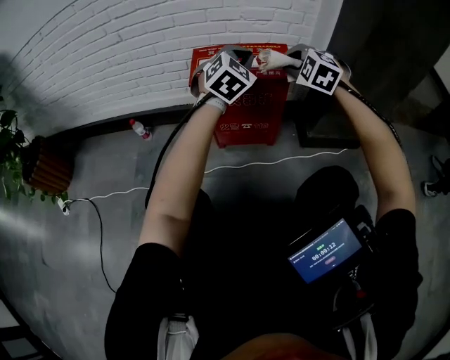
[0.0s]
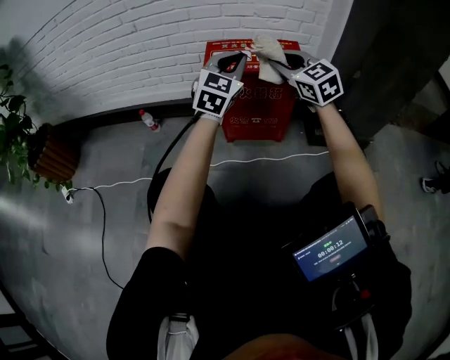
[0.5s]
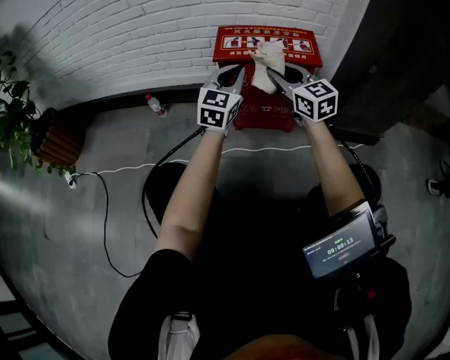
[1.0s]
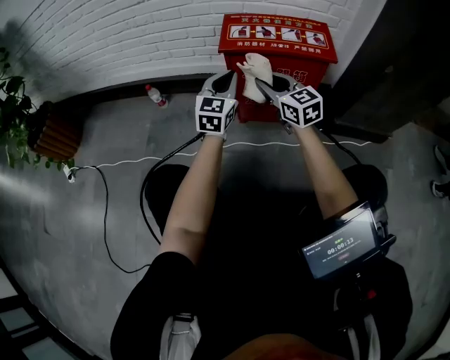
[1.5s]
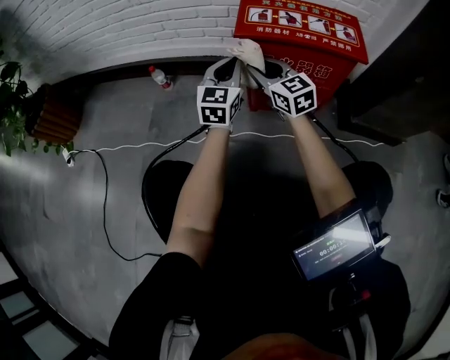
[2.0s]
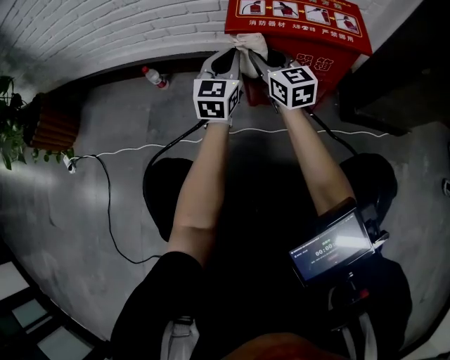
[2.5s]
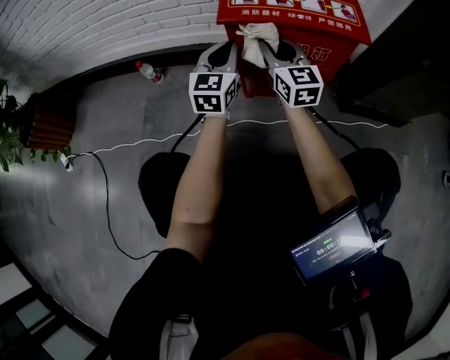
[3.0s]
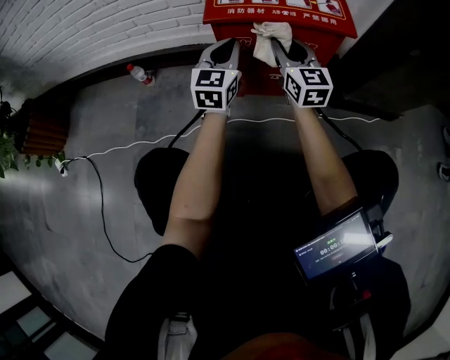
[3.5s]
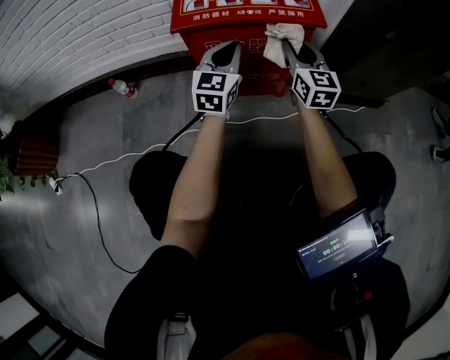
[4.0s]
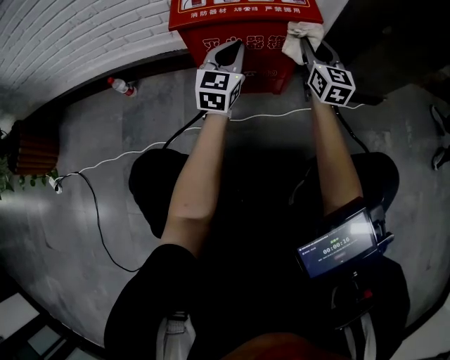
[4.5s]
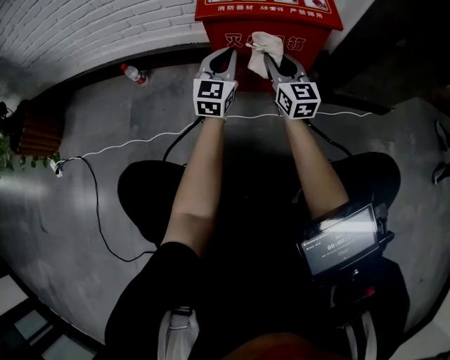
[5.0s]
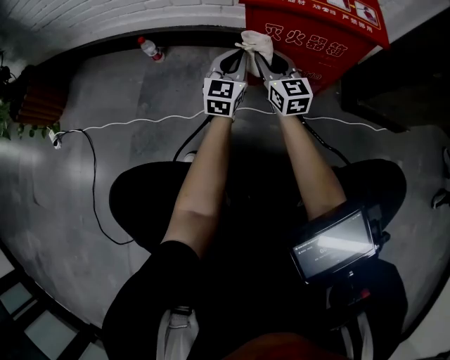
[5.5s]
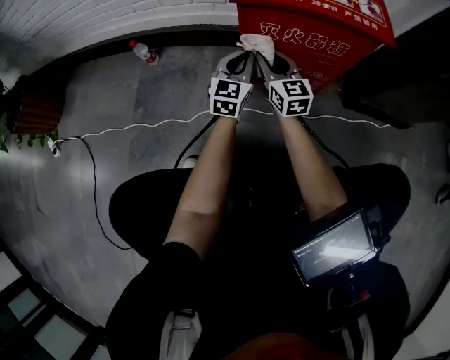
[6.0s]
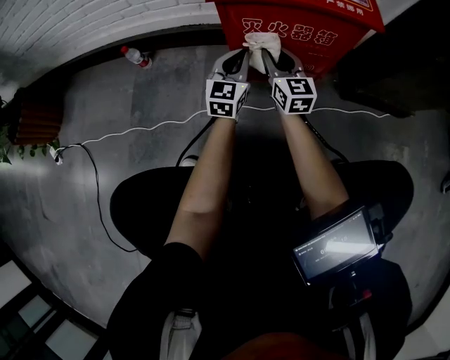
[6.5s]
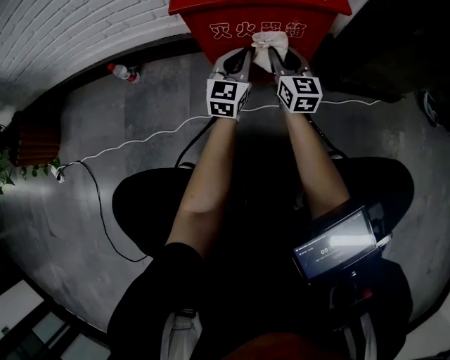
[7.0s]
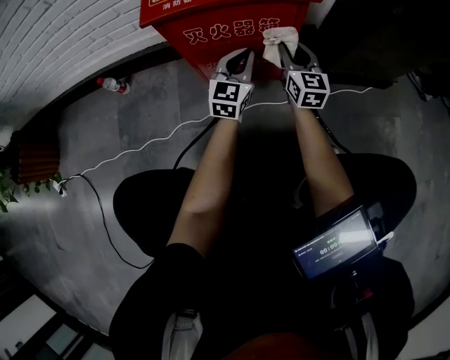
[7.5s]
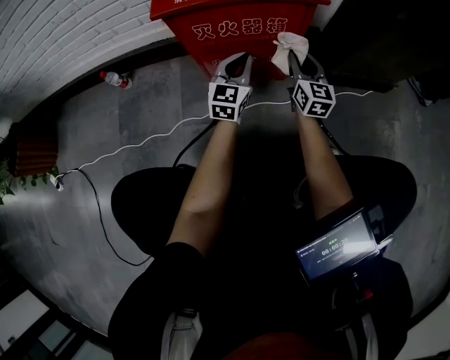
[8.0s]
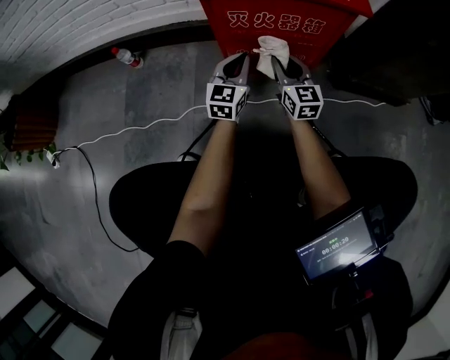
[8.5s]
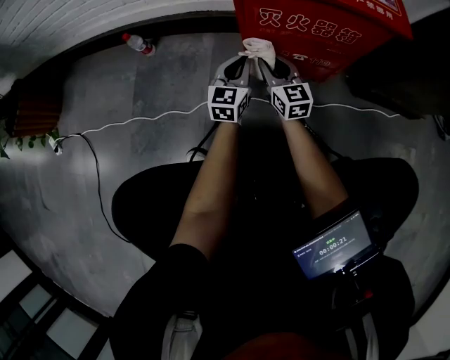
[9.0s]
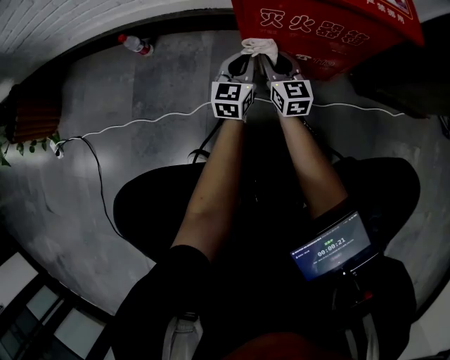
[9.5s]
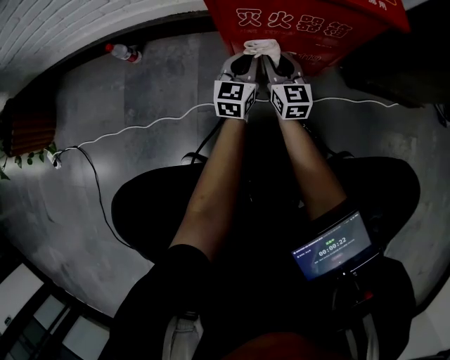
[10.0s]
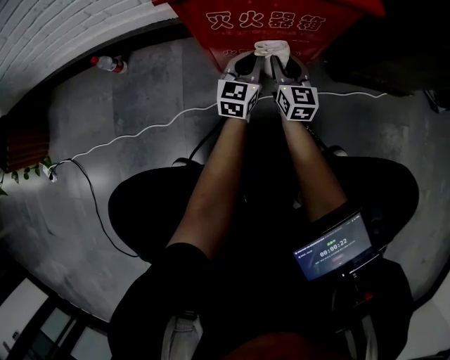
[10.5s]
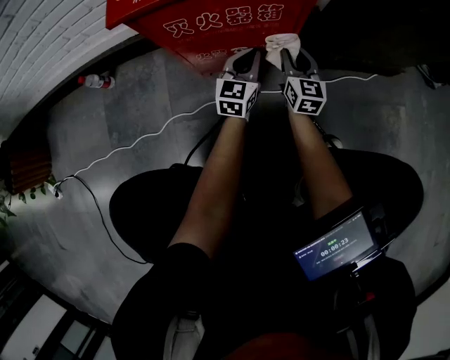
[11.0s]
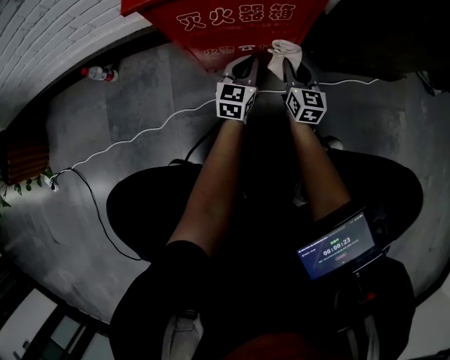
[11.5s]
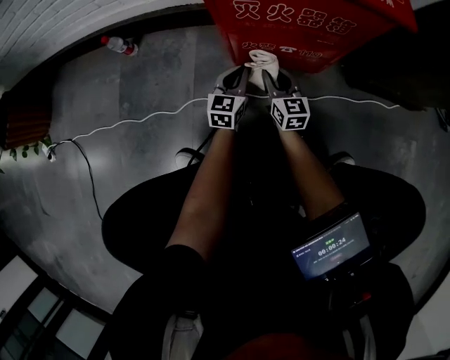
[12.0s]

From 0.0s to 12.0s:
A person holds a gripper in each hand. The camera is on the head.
From 0.0s to 2.0s: Both grippers move to the left and downward, approximately 30 cm. The left gripper rotates about 40 degrees. The right gripper changes its angle by roughly 60 degrees.
From 2.0s to 4.0s: The left gripper is displaced to the right by some 15 cm. The right gripper goes about 25 cm to the right, and changes its angle by about 40 degrees.
From 4.0s to 6.0s: The left gripper moves downward and to the left, roughly 15 cm; the right gripper travels to the left and downward by about 25 cm.
From 6.0s to 8.0s: The right gripper moves to the right, roughly 25 cm, and rotates about 20 degrees. Meanwhile the left gripper is displaced to the right by about 15 cm.
From 8.0s to 10.0s: The left gripper shifts approximately 15 cm to the left and downward, while the right gripper is displaced to the left and downward by approximately 20 cm.
From 10.0s to 12.0s: The two grippers go about 10 cm downward. The right gripper reaches some 20 cm to the right, then returns, while the left gripper moves roughly 15 cm to the right and comes back.

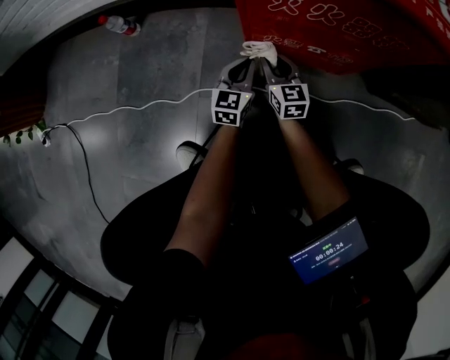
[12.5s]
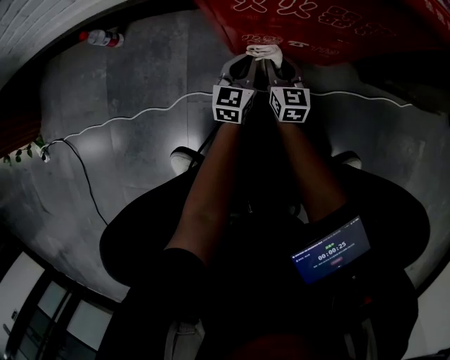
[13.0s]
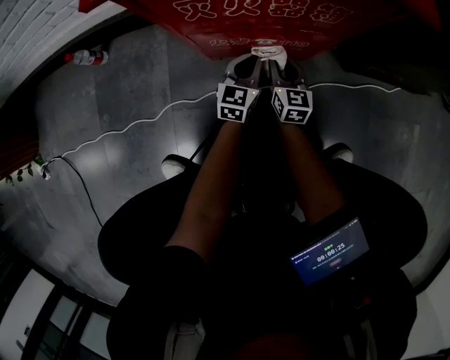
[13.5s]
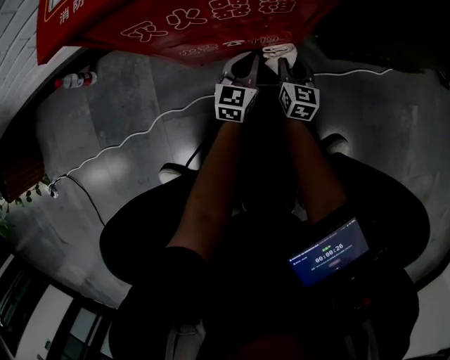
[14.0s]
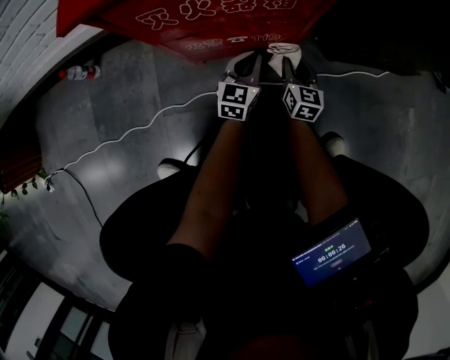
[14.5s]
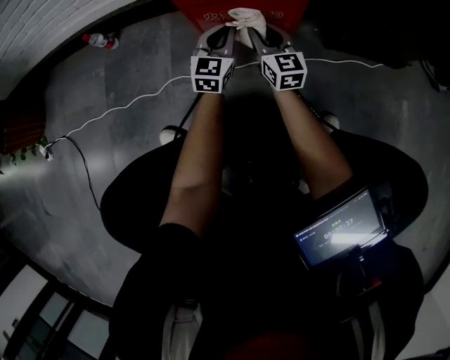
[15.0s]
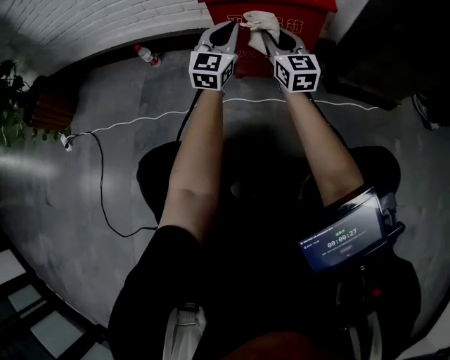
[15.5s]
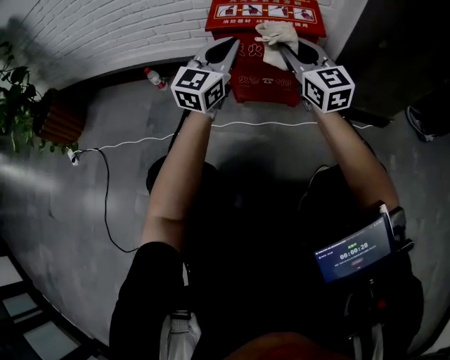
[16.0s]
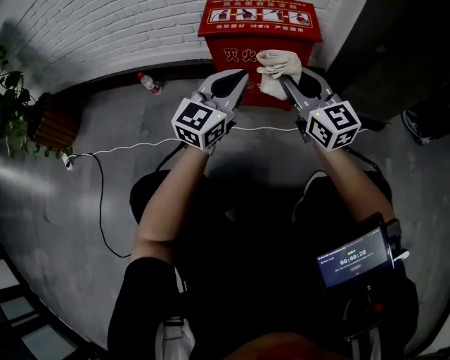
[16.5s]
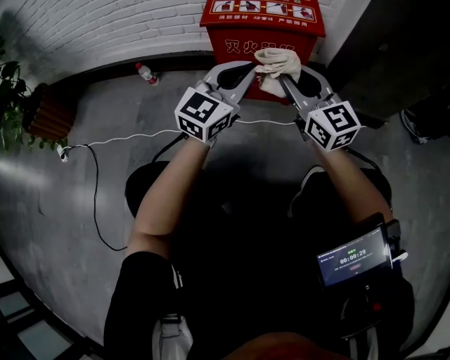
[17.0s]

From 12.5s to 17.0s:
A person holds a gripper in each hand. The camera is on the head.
From 12.5s to 14.5s: The grippers both shift to the right by about 25 cm. The right gripper rotates approximately 30 degrees.
From 14.5s to 17.0s: The left gripper shifts approximately 50 cm upward and backward, and swivels approximately 20 degrees, while the right gripper goes about 50 cm upward, and changes its angle by some 50 degrees.

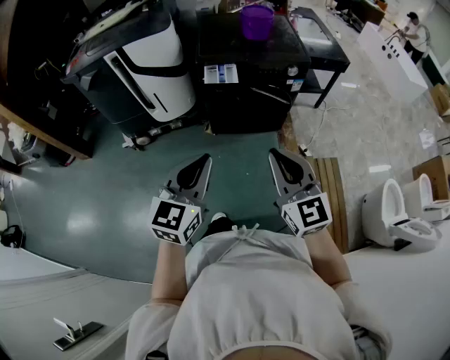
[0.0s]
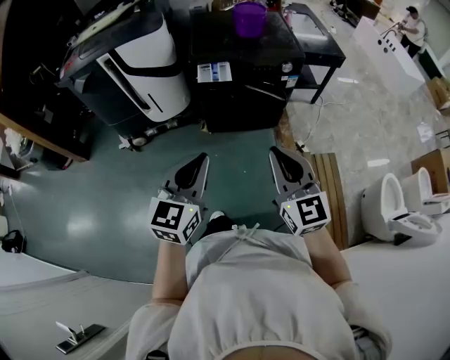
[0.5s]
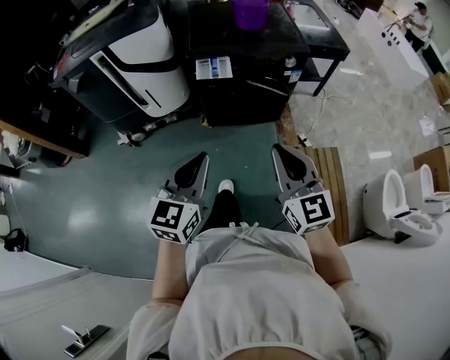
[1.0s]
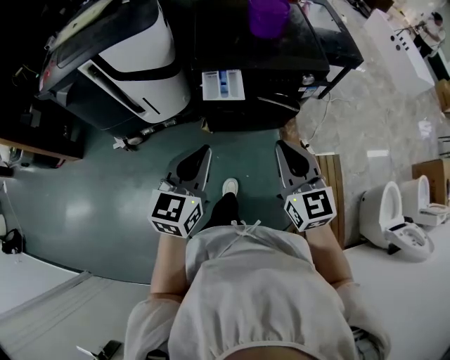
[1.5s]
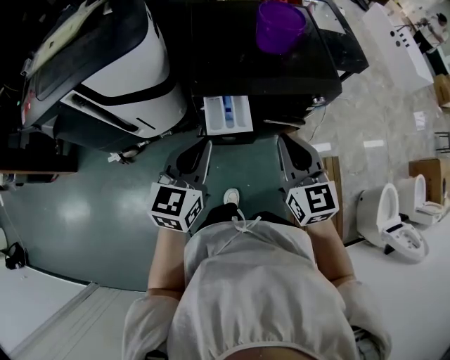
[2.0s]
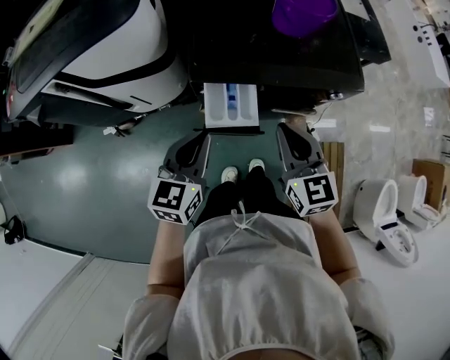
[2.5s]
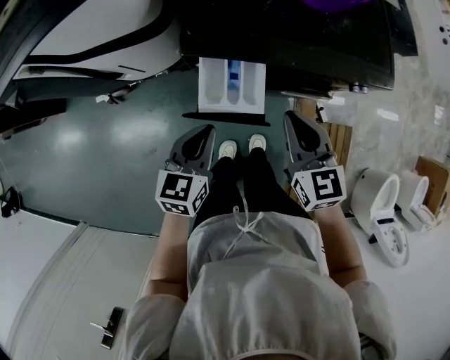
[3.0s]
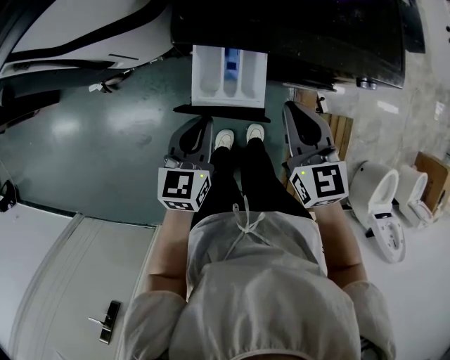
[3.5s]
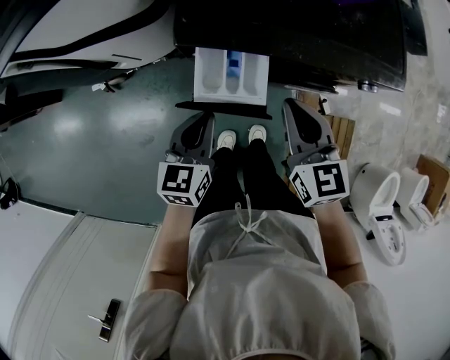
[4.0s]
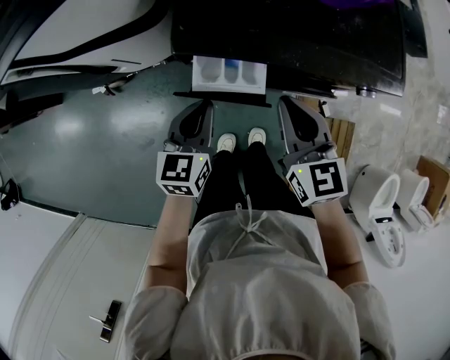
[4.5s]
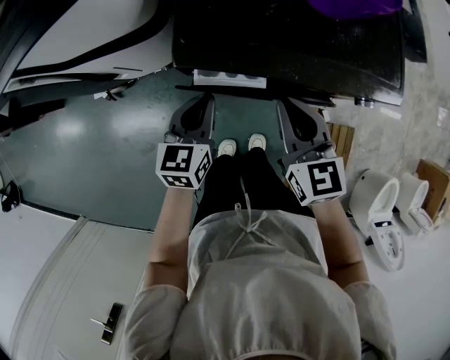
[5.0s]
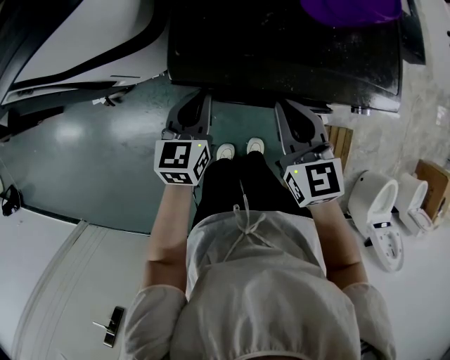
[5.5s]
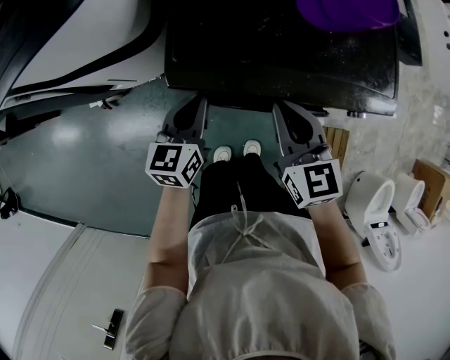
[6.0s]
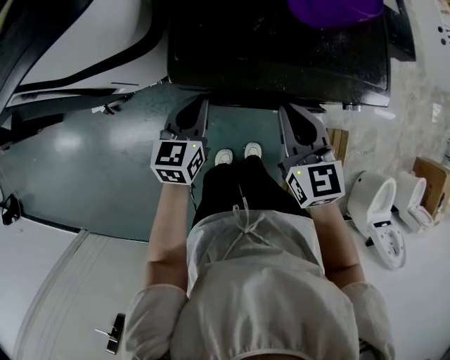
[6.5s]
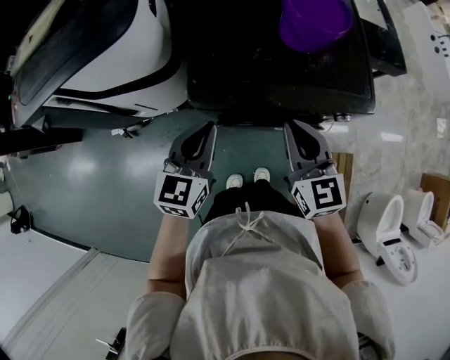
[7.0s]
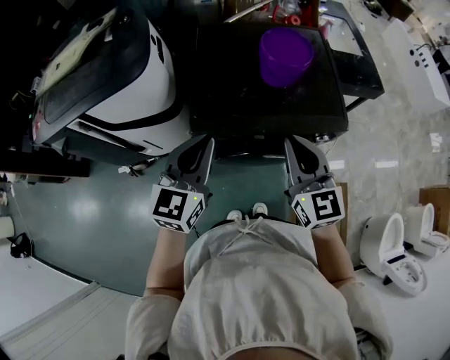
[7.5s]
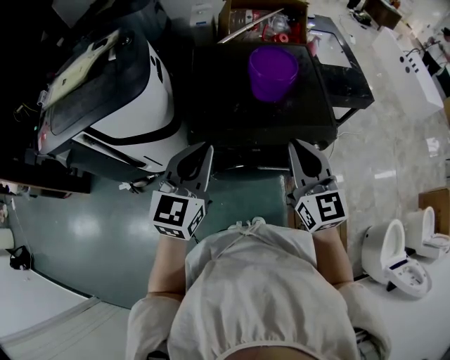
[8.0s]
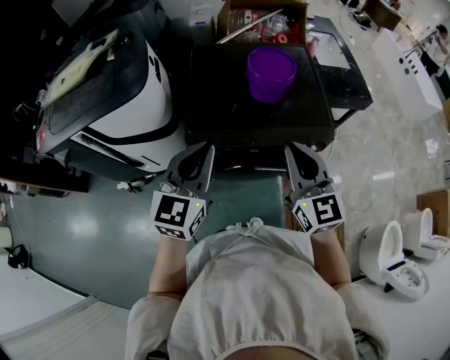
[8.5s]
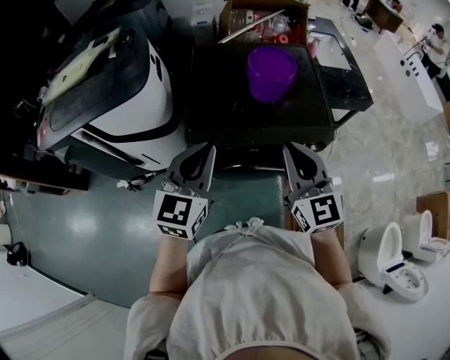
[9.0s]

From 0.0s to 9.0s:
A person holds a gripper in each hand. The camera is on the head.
From 0.0s to 2.0s: Both grippers travel together forward, about 40 cm.
From 2.0s to 4.5s: Both grippers move downward and forward, approximately 20 cm. The left gripper rotates about 20 degrees.
From 4.5s to 7.0s: The grippers both shift upward by some 10 cm.
From 7.0s to 9.0s: The right gripper goes some 15 cm upward and to the right. Meanwhile the left gripper heads upward, covering approximately 15 cm.

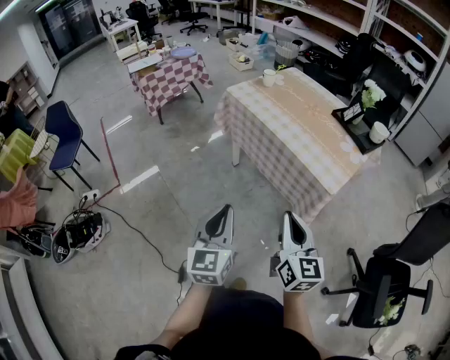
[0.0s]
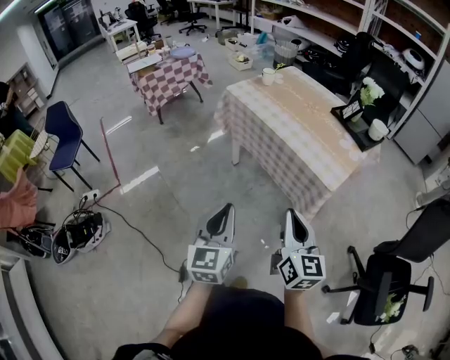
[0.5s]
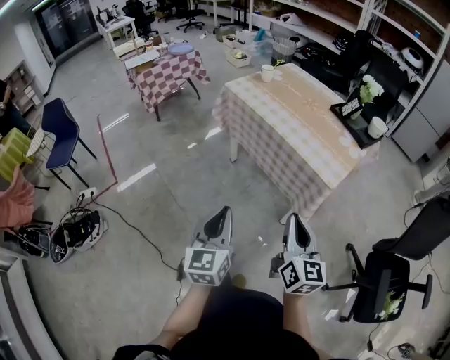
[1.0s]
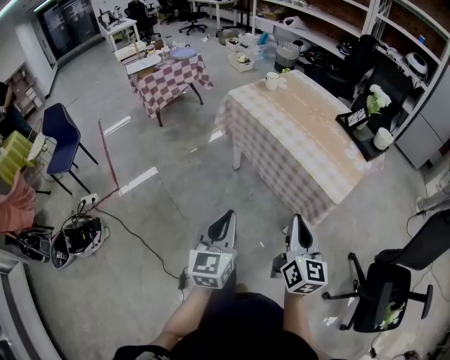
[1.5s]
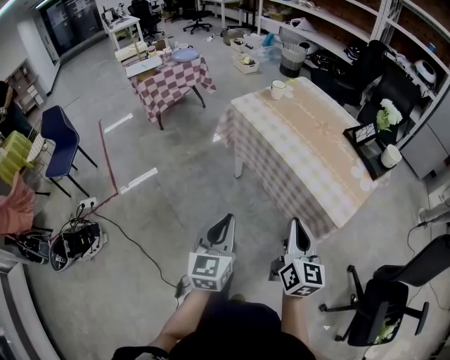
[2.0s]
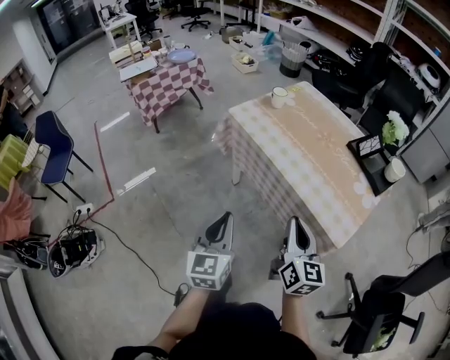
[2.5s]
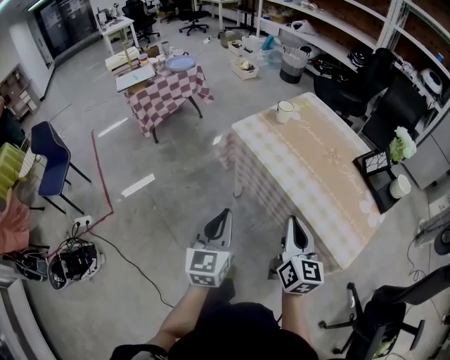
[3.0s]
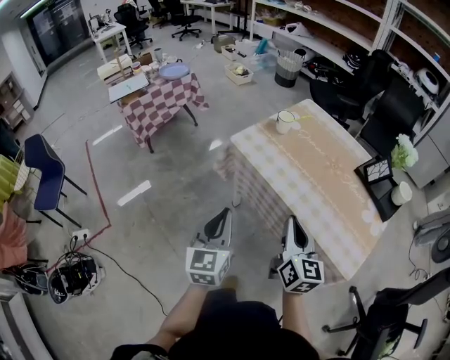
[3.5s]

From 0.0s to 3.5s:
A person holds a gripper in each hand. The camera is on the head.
From 0.0s to 2.0s: Both grippers move forward, approximately 10 cm.
From 2.0s to 3.5s: Both grippers move forward, roughly 25 cm.
